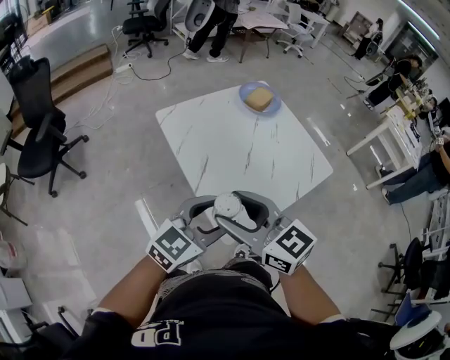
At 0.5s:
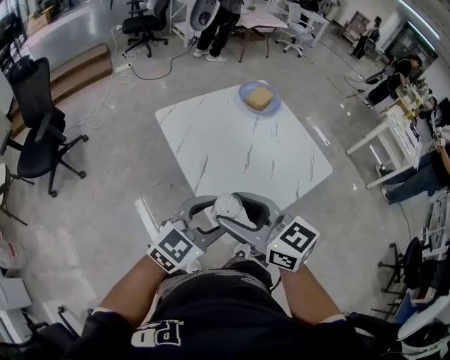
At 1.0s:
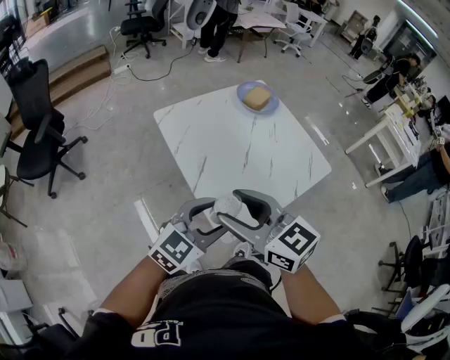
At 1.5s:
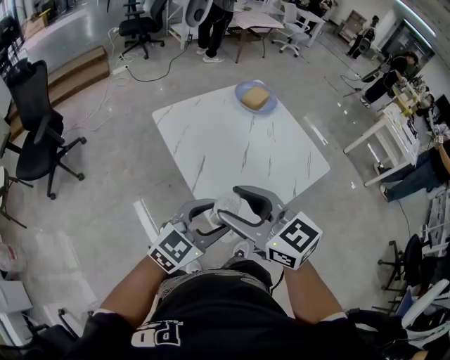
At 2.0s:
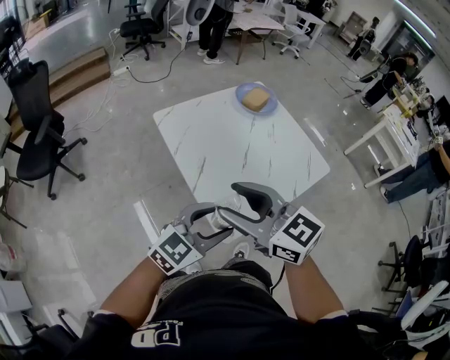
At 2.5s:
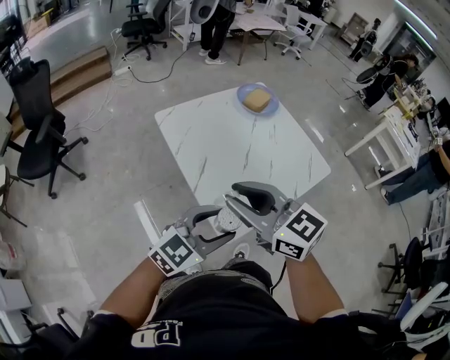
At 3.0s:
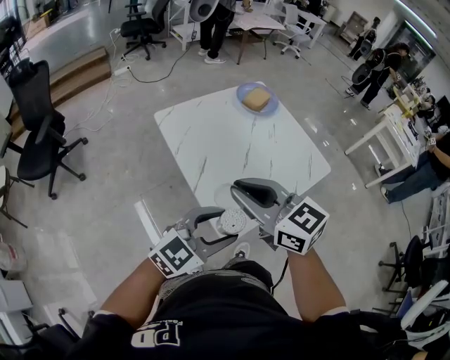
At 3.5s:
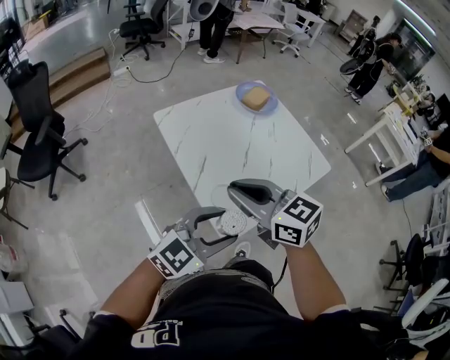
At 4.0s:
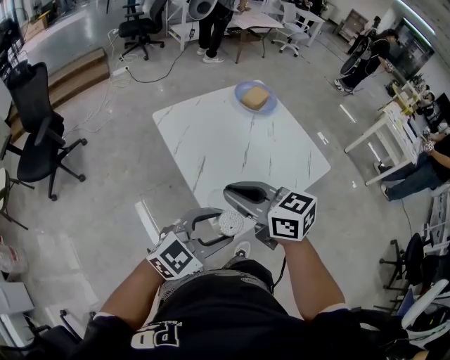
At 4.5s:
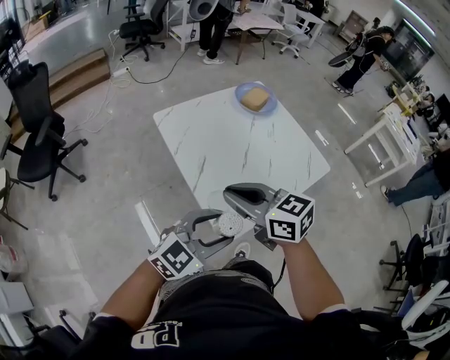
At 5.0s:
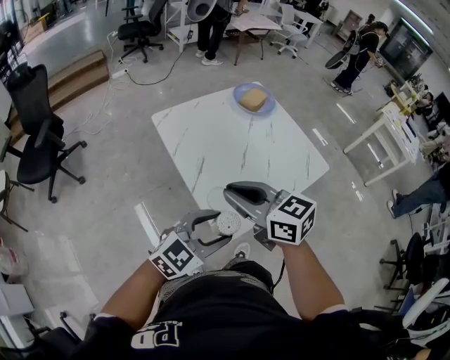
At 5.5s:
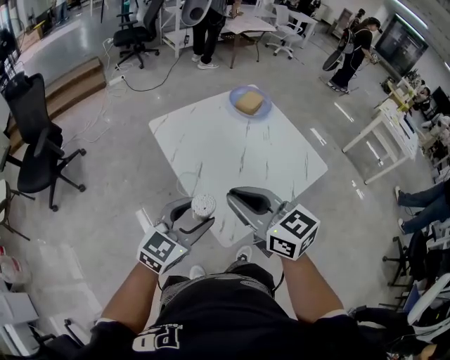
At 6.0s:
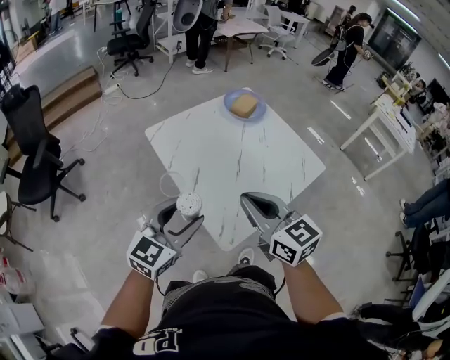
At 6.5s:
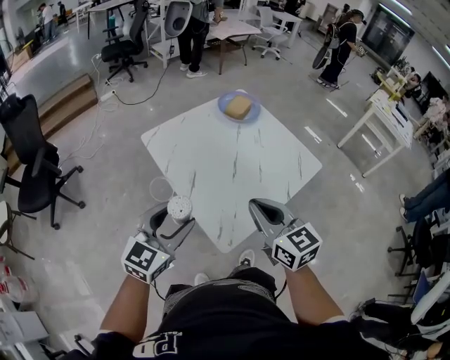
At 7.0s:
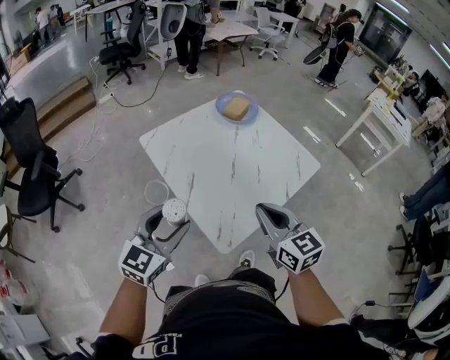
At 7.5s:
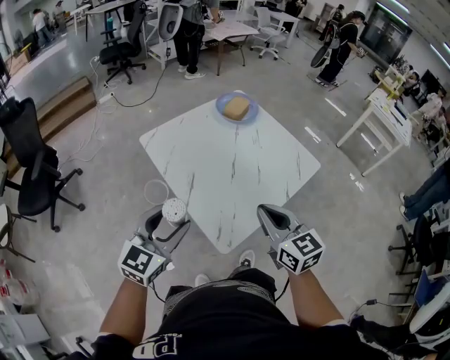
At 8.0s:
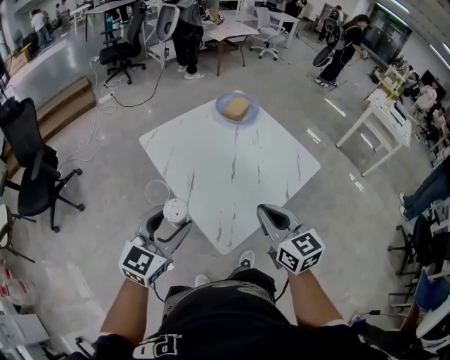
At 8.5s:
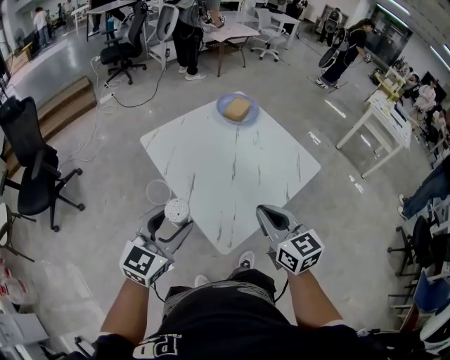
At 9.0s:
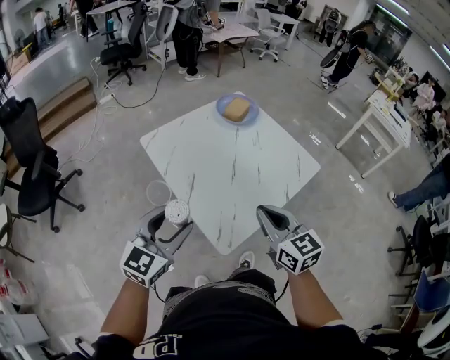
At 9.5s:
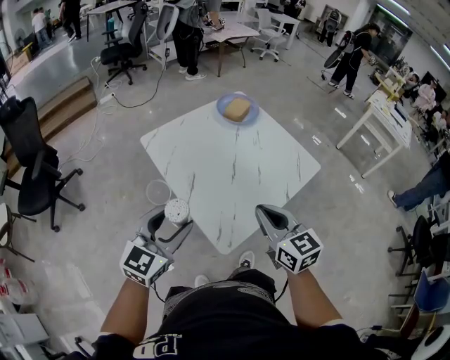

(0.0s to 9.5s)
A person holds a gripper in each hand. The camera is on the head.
0.0s - 2.0s: The grippers make only small movements.
2.0s - 4.0s: The right gripper moves about 5 cm, and closes.
4.0s - 5.5s: The left gripper heads to the left and forward, covering approximately 10 cm.
5.5s - 7.5s: The right gripper shifts roughly 15 cm to the right and downward, and changes its angle by approximately 20 degrees; the left gripper changes place by roughly 5 cm.
7.5s - 9.5s: Both grippers stay put.

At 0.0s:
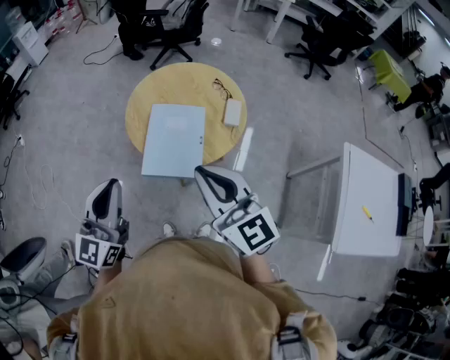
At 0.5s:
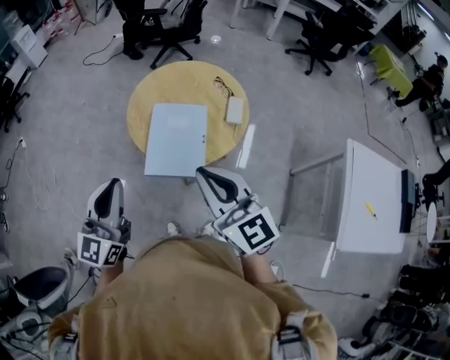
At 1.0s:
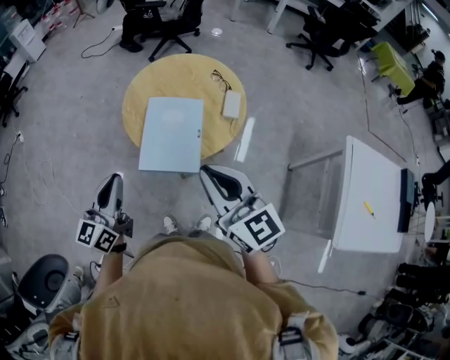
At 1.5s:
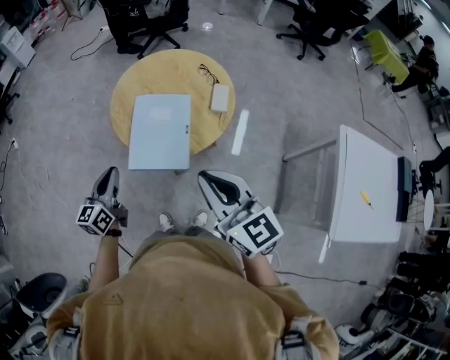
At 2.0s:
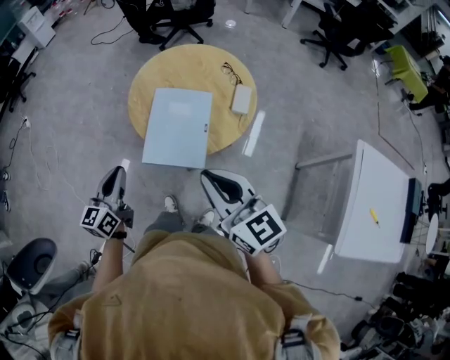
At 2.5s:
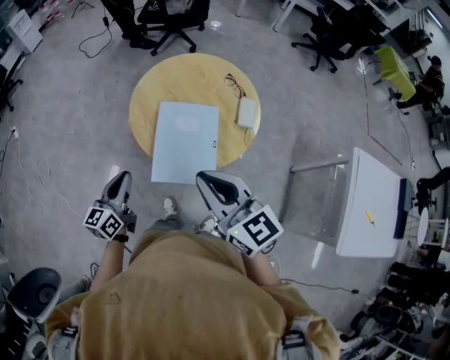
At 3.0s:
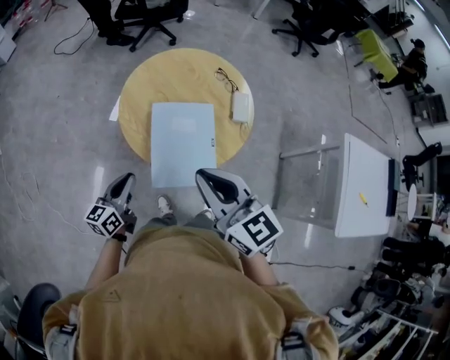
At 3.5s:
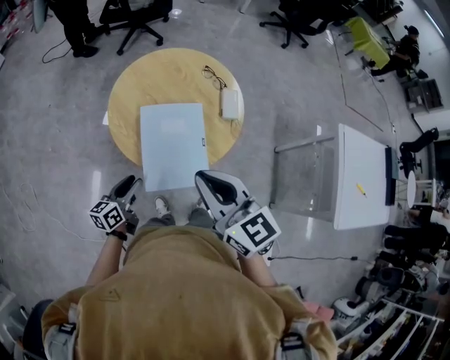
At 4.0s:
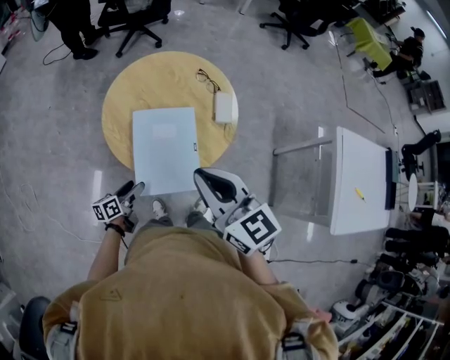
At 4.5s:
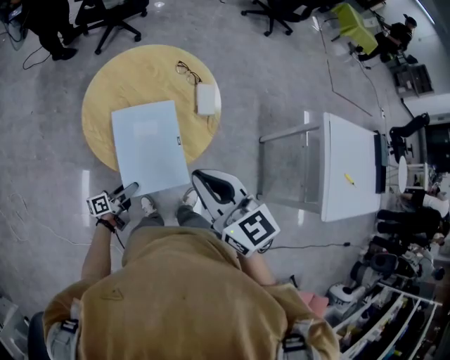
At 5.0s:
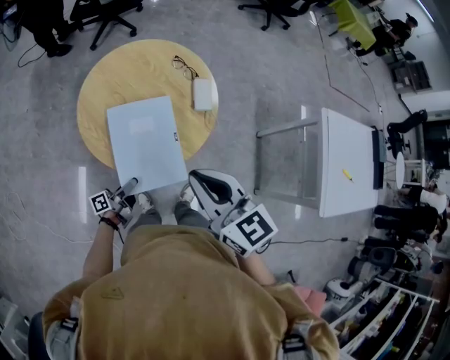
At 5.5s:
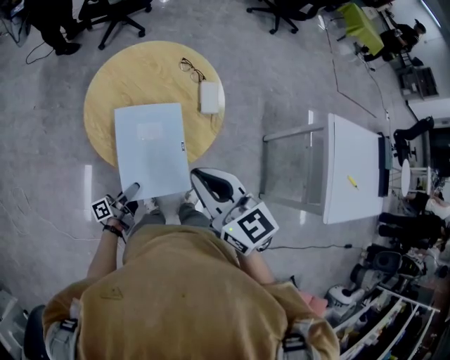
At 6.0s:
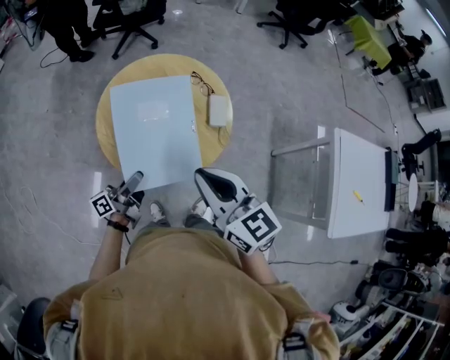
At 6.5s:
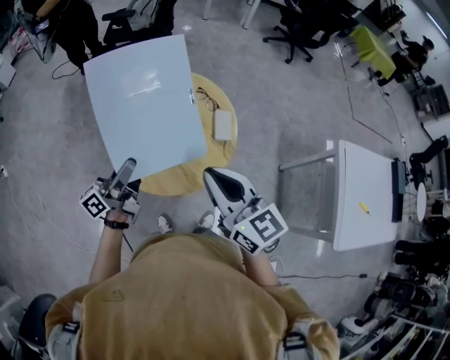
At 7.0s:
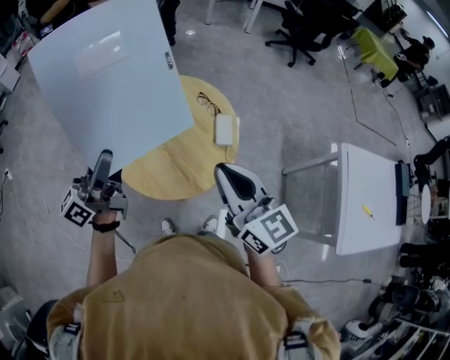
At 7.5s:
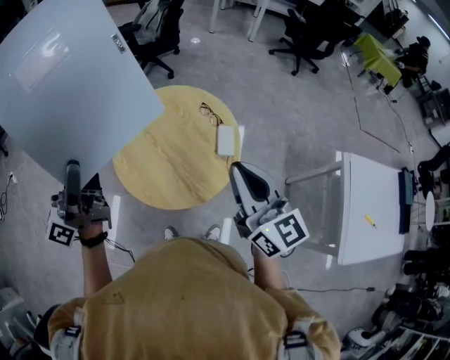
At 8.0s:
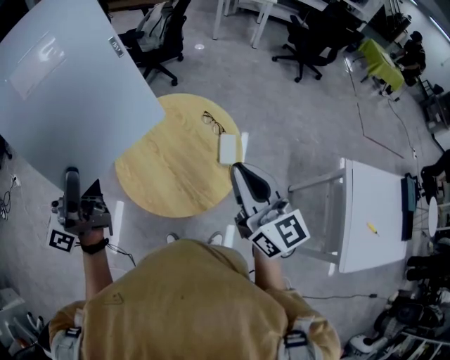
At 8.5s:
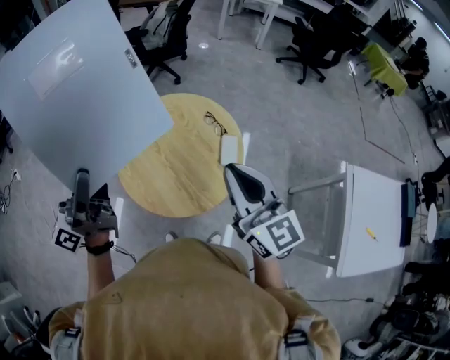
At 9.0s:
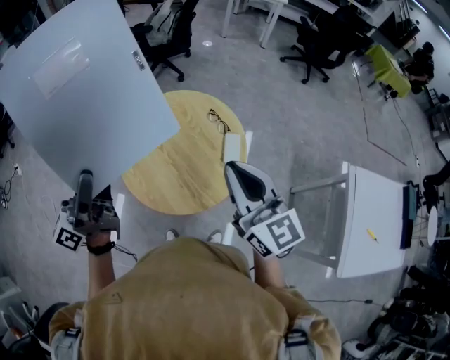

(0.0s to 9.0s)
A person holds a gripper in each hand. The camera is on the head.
0.0s - 2.0s: The right gripper moves downward, roughly 10 cm; the left gripper shifts some 15 cm downward, and swivels some 30 degrees.
2.0s - 4.5s: The right gripper ends up about 15 cm from where it was. The left gripper goes approximately 20 cm downward, rotates some 70 degrees, and opens up.
4.5s - 7.0s: The right gripper shifts roughly 10 cm to the right and forward, while the left gripper moves upward, some 40 cm, and angles its fingers upward, by roughly 30 degrees.
7.0s - 9.0s: The right gripper heads forward and upward, covering about 10 cm. The left gripper heads upward, covering about 10 cm.

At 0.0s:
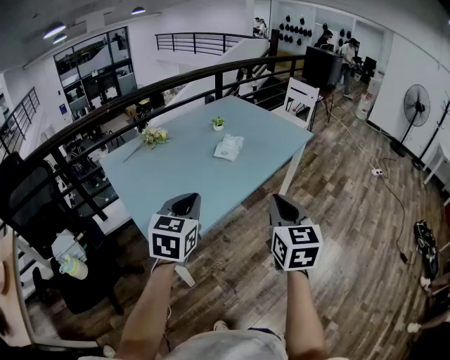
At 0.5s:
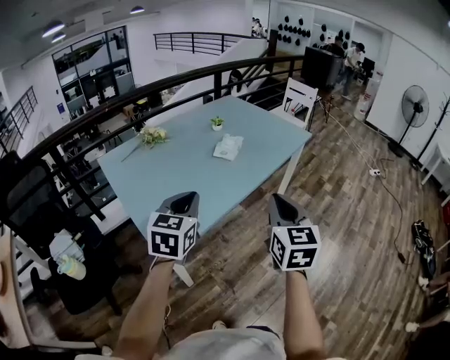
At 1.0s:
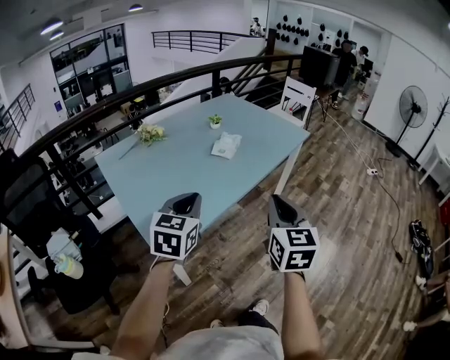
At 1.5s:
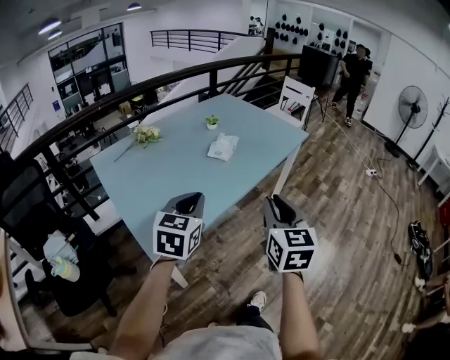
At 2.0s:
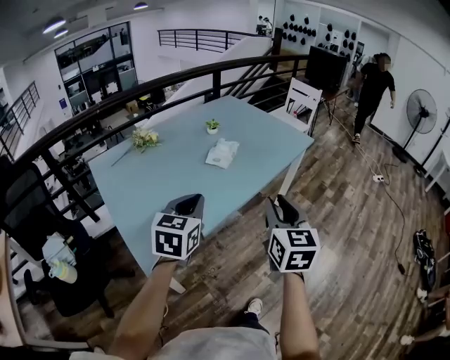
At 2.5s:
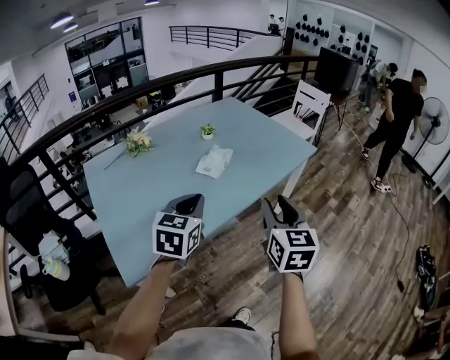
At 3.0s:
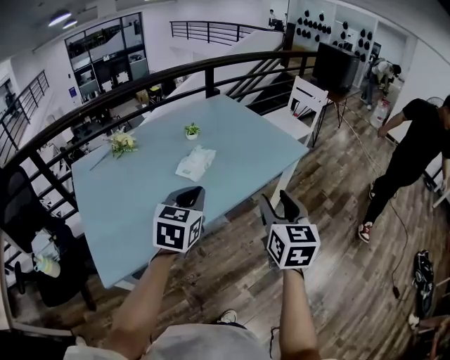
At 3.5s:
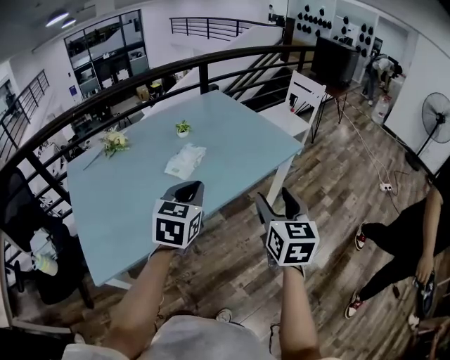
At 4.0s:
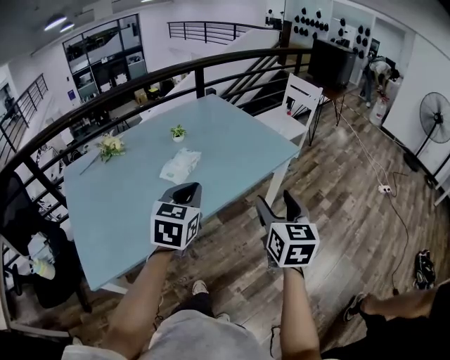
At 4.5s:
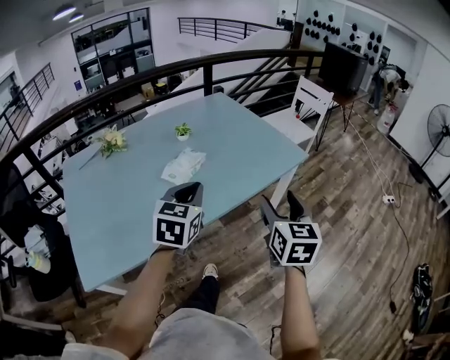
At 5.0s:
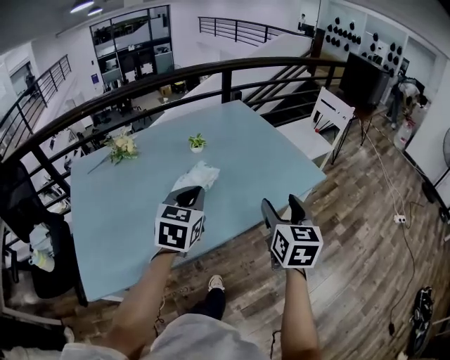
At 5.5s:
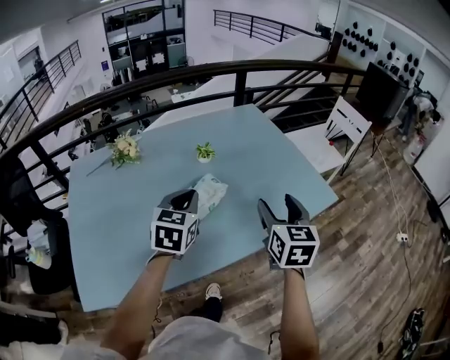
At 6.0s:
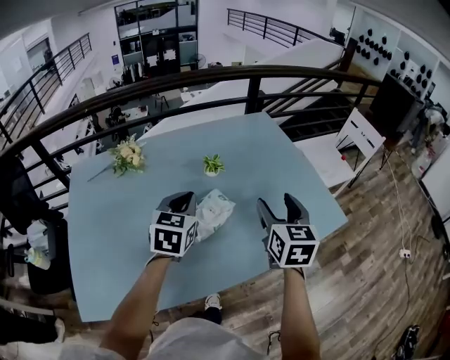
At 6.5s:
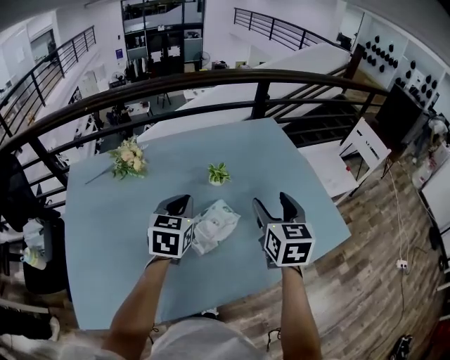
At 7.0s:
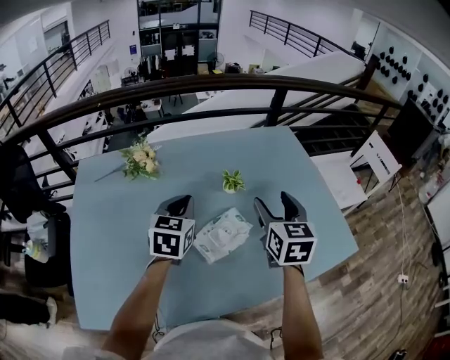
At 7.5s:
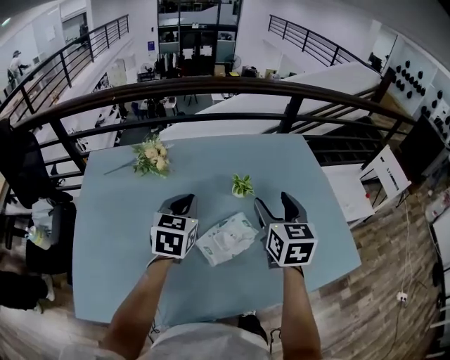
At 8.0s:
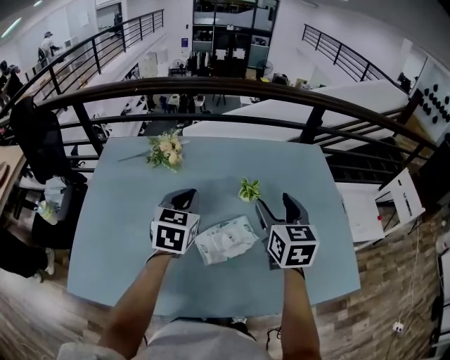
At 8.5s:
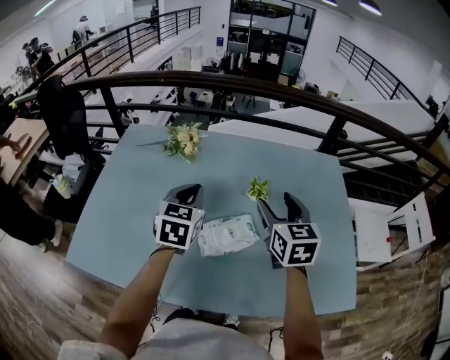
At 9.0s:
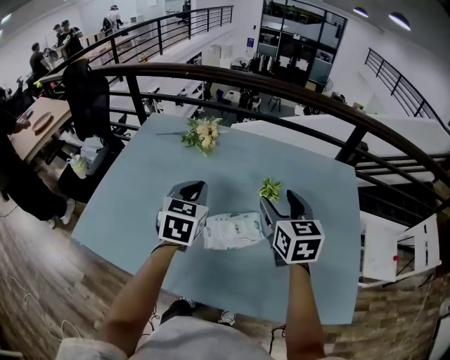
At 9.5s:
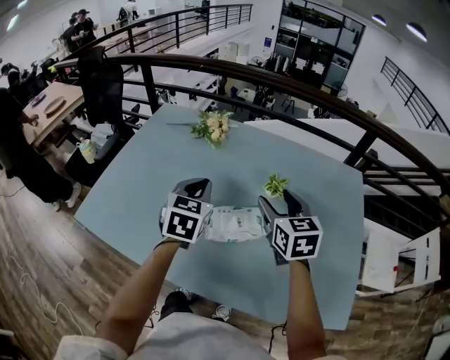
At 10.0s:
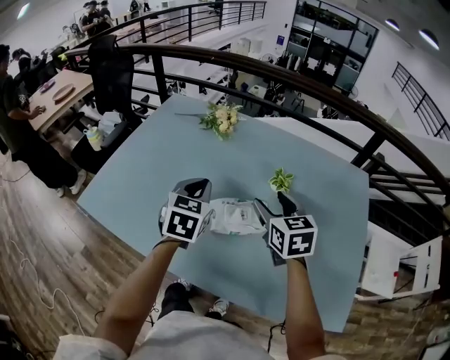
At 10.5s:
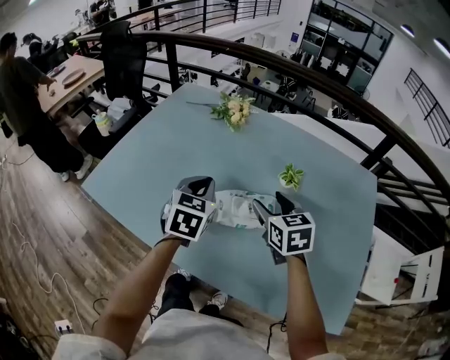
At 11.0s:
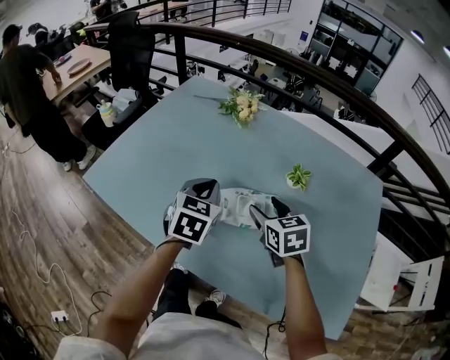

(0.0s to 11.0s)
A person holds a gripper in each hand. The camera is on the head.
0.0s - 2.0s: The two grippers go some 10 cm forward.
2.0s - 3.5s: The two grippers go roughly 25 cm to the right and forward. The right gripper opens.
3.5s - 5.5s: The left gripper travels forward and to the left by about 25 cm. The right gripper is displaced forward by roughly 25 cm.
5.5s - 7.5s: The two grippers go roughly 20 cm forward and to the left.
7.5s - 9.0s: The left gripper rotates approximately 20 degrees, while the right gripper swivels roughly 30 degrees.
9.0s - 11.0s: The right gripper shifts approximately 15 cm downward and to the left, and swivels about 30 degrees. The left gripper shifts approximately 10 cm downward and backward.
